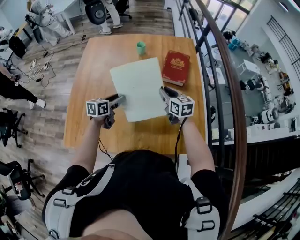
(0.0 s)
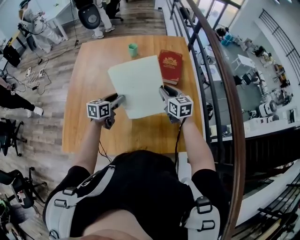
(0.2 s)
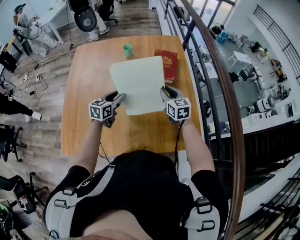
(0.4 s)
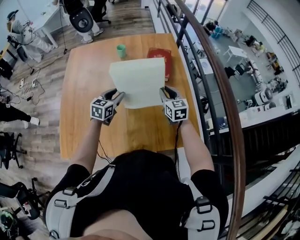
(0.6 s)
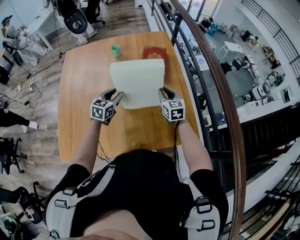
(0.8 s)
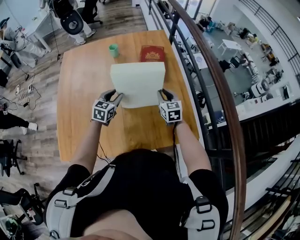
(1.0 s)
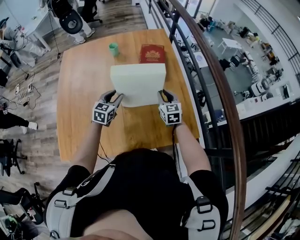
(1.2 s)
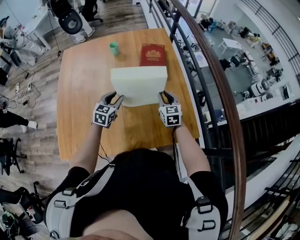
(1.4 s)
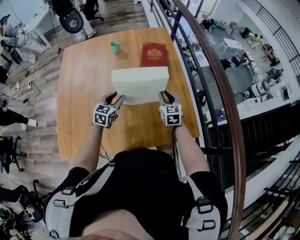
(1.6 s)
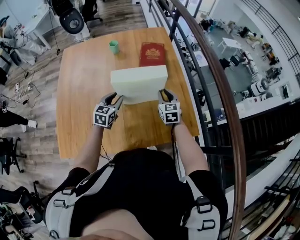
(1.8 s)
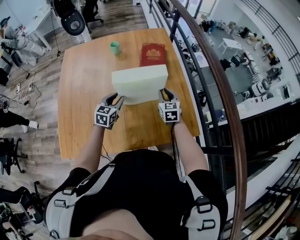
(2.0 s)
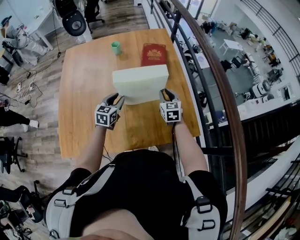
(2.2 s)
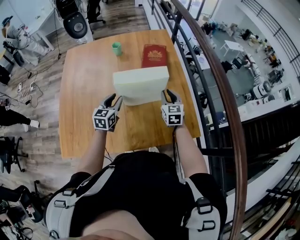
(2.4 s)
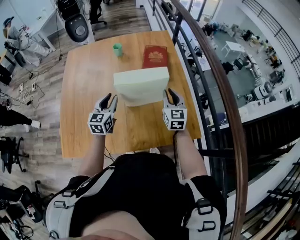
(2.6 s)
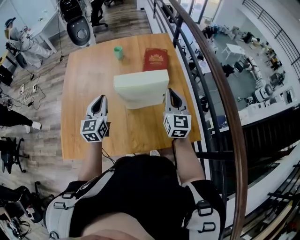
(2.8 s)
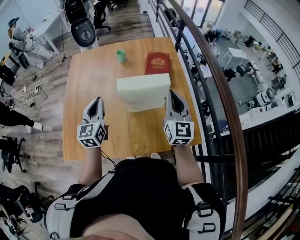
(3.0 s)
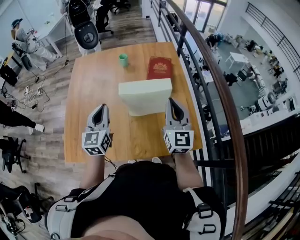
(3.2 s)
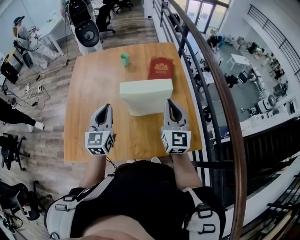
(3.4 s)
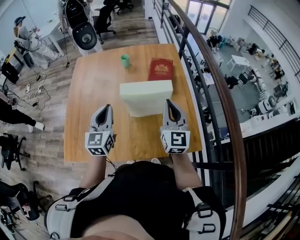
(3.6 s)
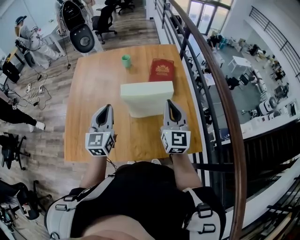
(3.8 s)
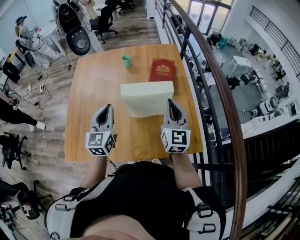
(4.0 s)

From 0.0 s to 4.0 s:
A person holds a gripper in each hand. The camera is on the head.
From 0.0 s to 1.4 s: Both grippers travel together to the right, some 10 cm. The left gripper swivels some 30 degrees, while the right gripper swivels approximately 30 degrees.
From 1.4 s to 2.6 s: The two grippers go approximately 10 cm upward.
From 2.6 s to 4.0 s: The left gripper travels upward and backward by about 15 cm, and closes its fingers. The right gripper shifts some 15 cm upward.

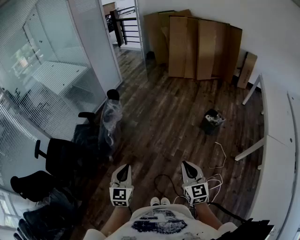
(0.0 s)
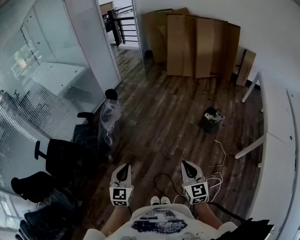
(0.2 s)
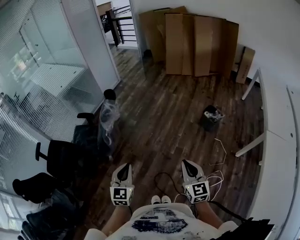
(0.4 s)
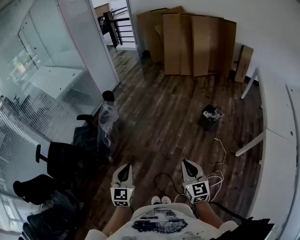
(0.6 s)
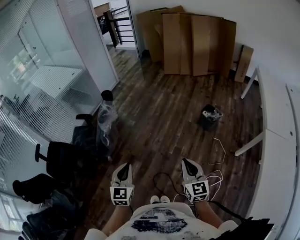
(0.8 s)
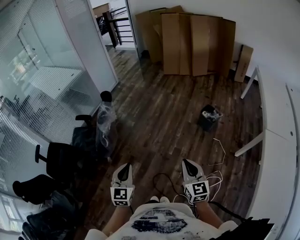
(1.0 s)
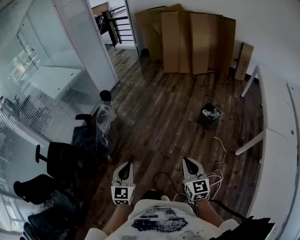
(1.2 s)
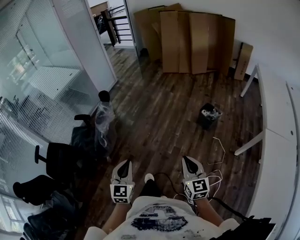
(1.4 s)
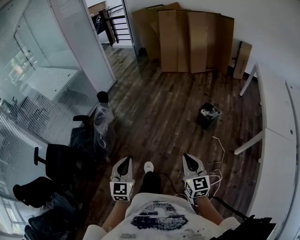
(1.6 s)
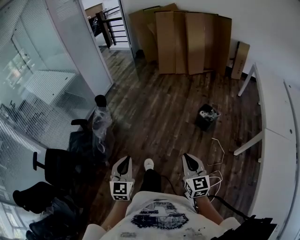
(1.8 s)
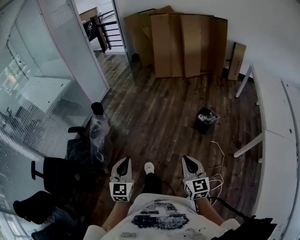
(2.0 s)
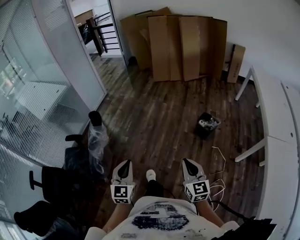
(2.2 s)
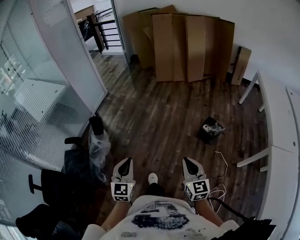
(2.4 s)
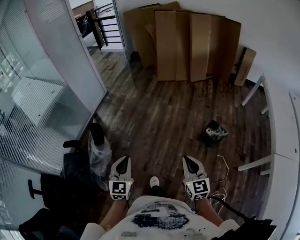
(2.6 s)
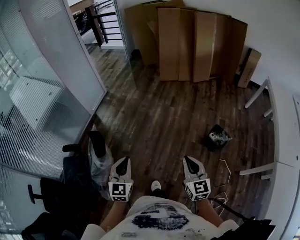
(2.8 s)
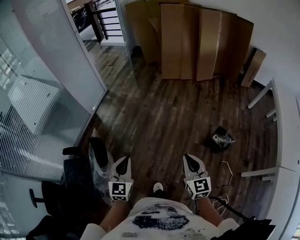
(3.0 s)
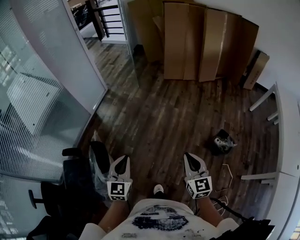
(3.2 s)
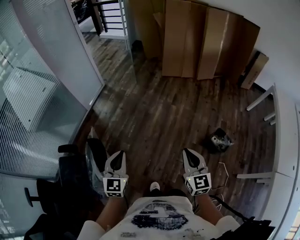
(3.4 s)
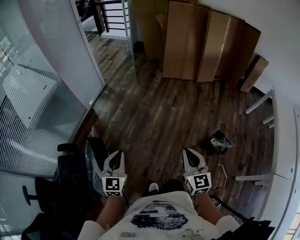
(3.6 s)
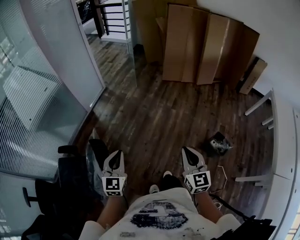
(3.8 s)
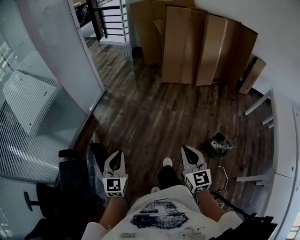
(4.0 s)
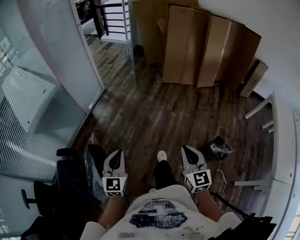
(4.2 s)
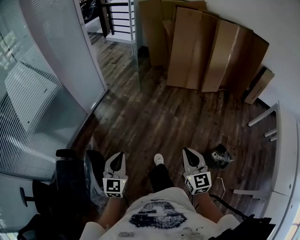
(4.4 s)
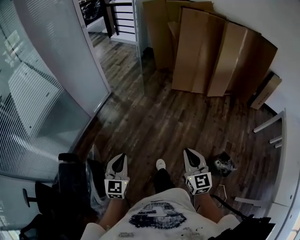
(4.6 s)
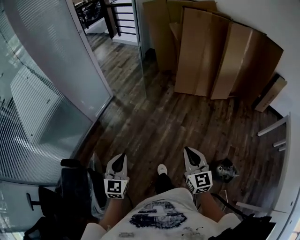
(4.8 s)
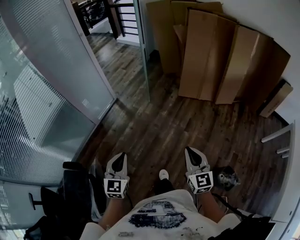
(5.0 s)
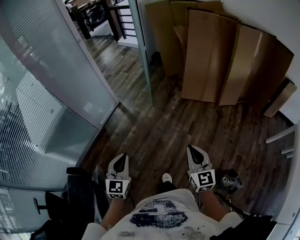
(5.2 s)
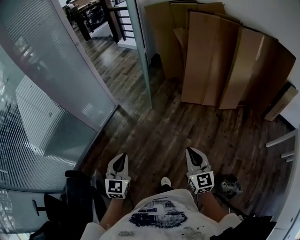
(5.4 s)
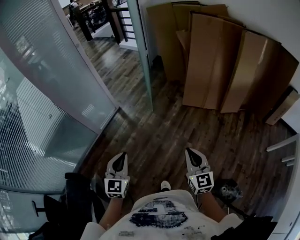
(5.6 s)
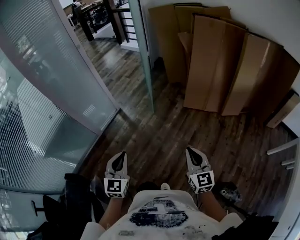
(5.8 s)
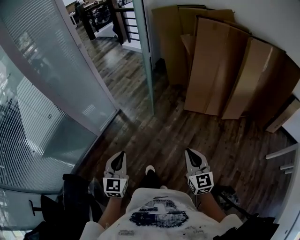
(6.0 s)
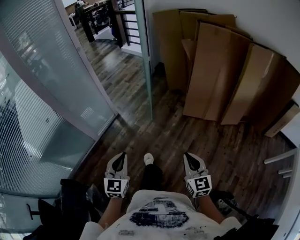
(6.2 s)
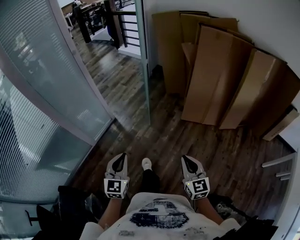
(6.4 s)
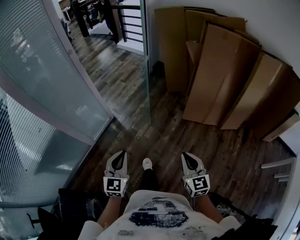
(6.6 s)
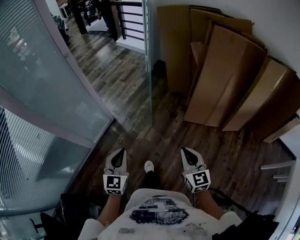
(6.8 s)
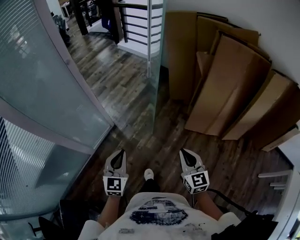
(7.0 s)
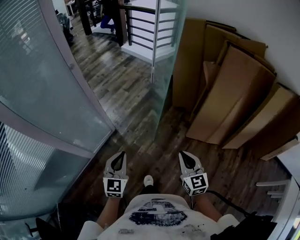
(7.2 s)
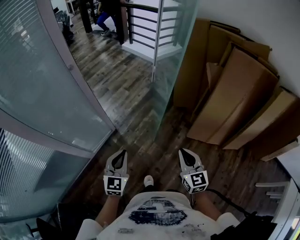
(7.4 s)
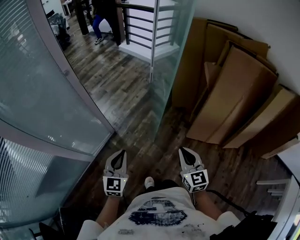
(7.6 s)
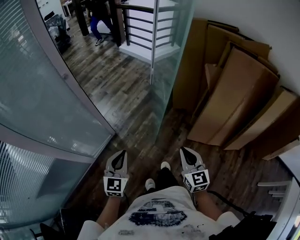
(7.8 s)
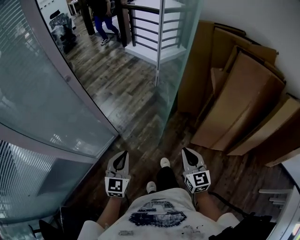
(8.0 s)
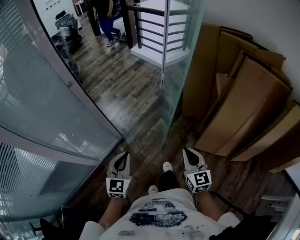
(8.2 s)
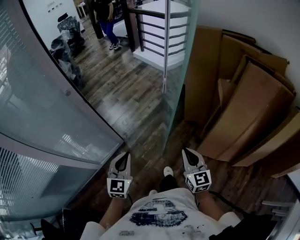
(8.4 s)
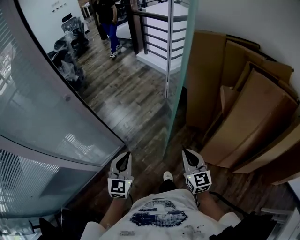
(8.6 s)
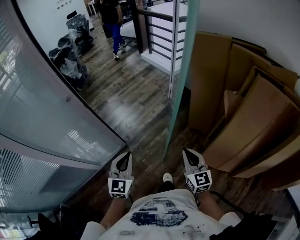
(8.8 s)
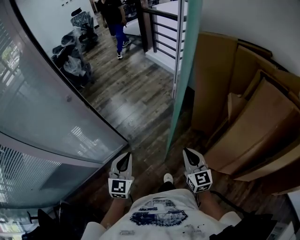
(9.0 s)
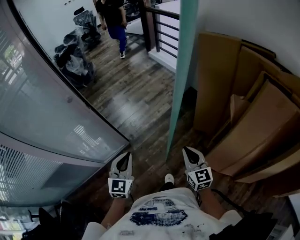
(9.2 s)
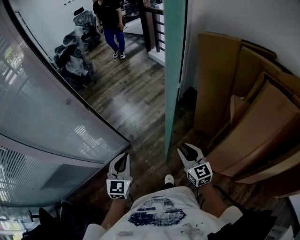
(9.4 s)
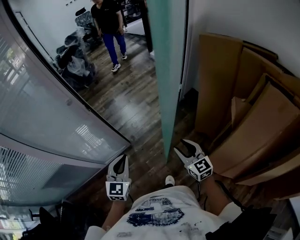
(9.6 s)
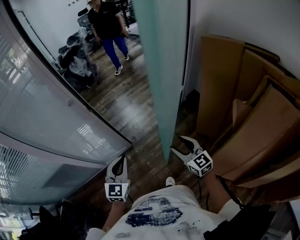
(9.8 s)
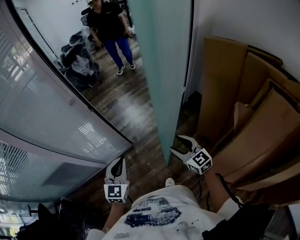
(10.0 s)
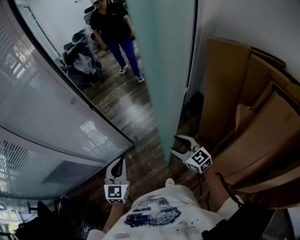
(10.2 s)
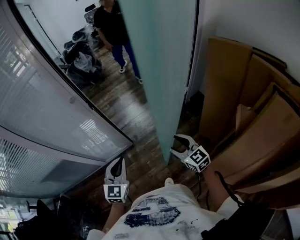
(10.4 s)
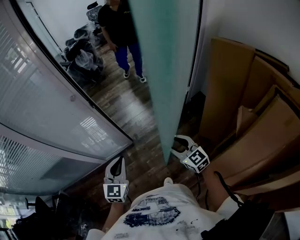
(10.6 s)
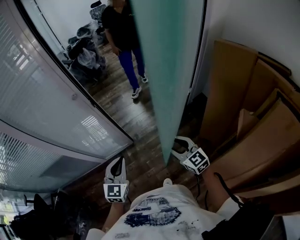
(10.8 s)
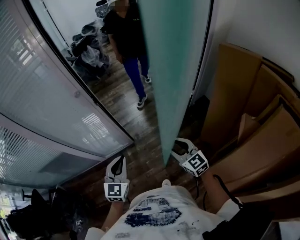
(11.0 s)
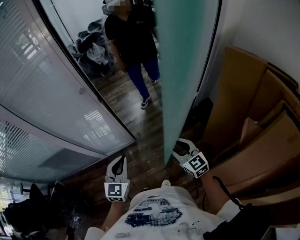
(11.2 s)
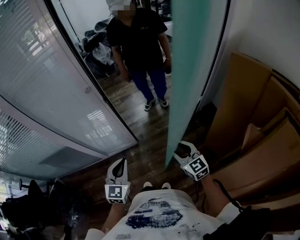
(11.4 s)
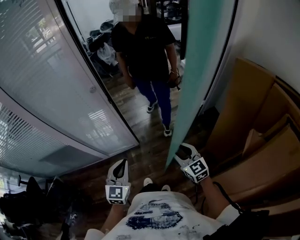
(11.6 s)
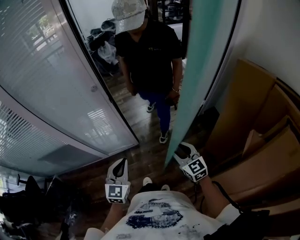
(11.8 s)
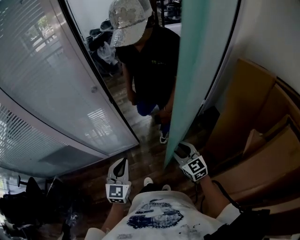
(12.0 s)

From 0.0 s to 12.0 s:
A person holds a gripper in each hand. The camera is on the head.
From 0.0 s to 1.6 s: The right gripper moves to the right, roughly 10 cm. Meanwhile the left gripper is displaced to the right and forward by about 10 cm.
From 1.6 s to 3.0 s: Both grippers are carried forward, some 50 cm.
From 3.0 s to 4.4 s: The grippers both shift forward by some 15 cm.
From 4.4 s to 6.0 s: Both grippers travel together forward, some 35 cm.
From 6.0 s to 7.6 s: Both grippers are carried forward, some 40 cm.
From 7.6 s to 9.0 s: The two grippers go some 20 cm forward.
From 9.0 s to 10.4 s: The right gripper goes approximately 10 cm forward, swivels approximately 40 degrees, and opens.
From 10.4 s to 12.0 s: The right gripper moves about 5 cm.

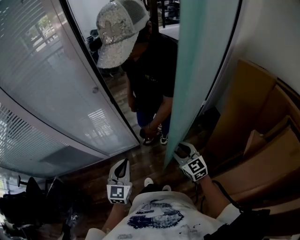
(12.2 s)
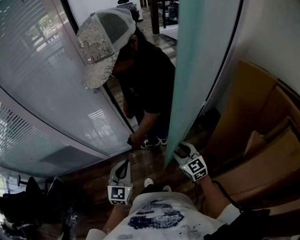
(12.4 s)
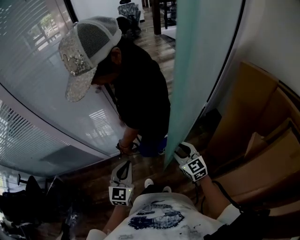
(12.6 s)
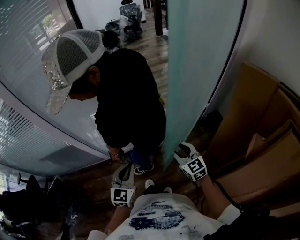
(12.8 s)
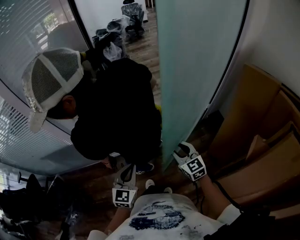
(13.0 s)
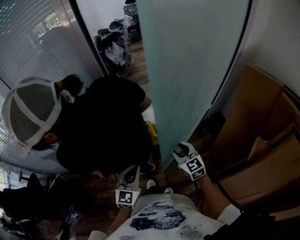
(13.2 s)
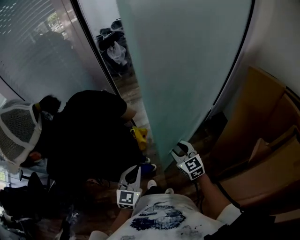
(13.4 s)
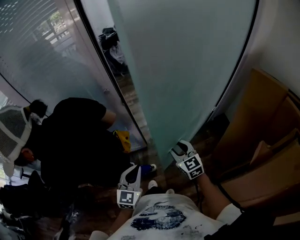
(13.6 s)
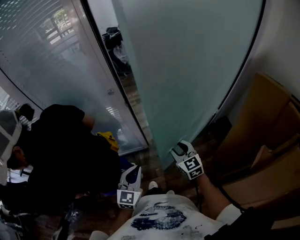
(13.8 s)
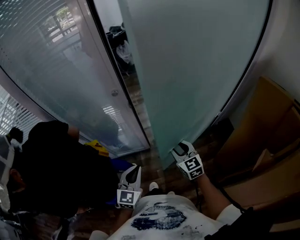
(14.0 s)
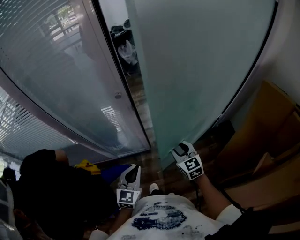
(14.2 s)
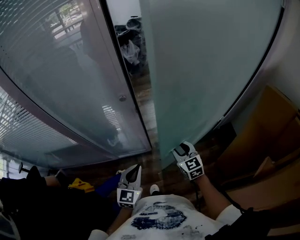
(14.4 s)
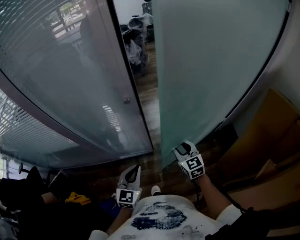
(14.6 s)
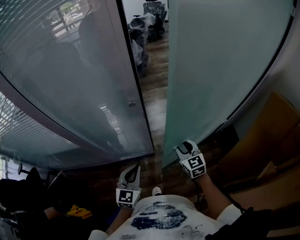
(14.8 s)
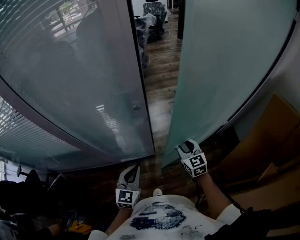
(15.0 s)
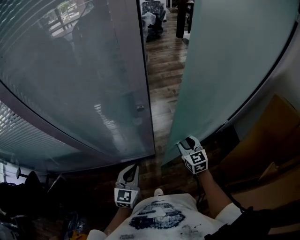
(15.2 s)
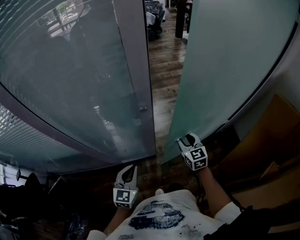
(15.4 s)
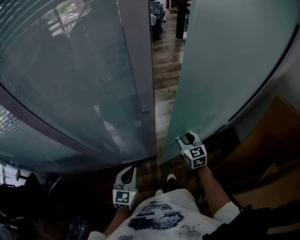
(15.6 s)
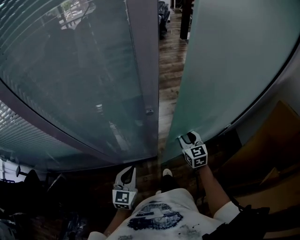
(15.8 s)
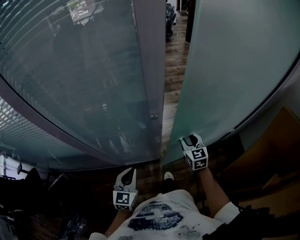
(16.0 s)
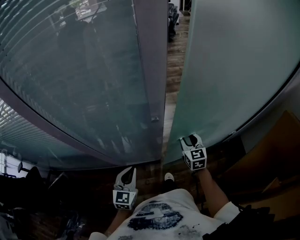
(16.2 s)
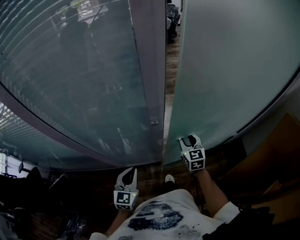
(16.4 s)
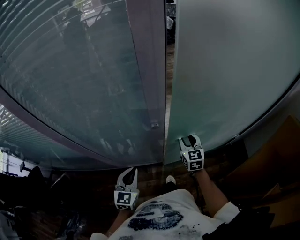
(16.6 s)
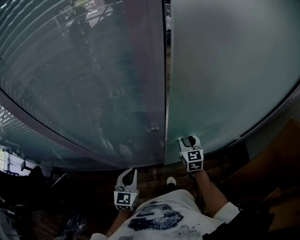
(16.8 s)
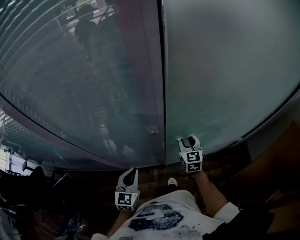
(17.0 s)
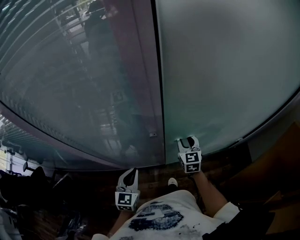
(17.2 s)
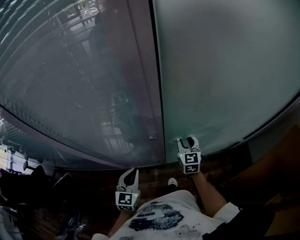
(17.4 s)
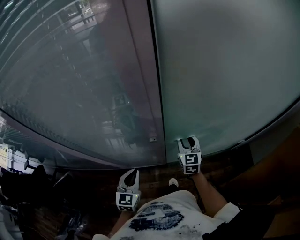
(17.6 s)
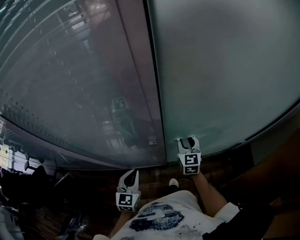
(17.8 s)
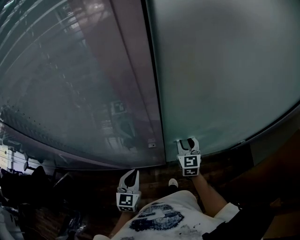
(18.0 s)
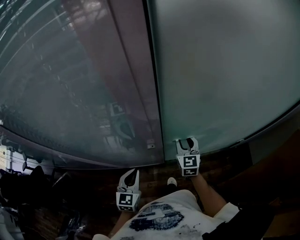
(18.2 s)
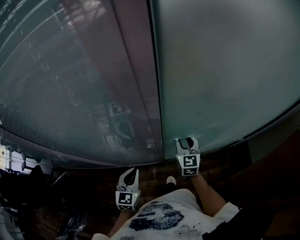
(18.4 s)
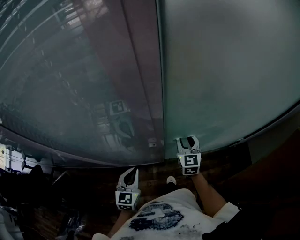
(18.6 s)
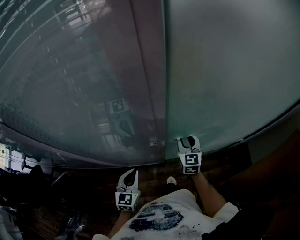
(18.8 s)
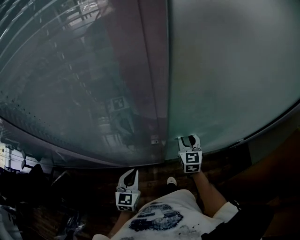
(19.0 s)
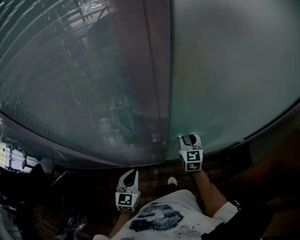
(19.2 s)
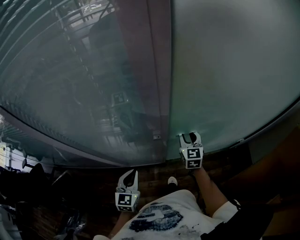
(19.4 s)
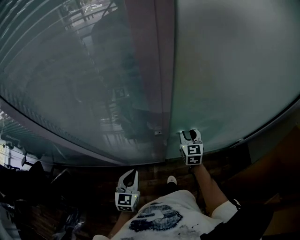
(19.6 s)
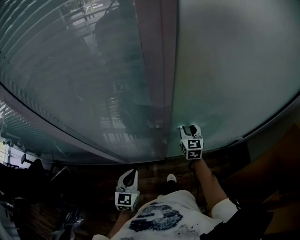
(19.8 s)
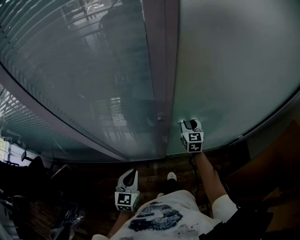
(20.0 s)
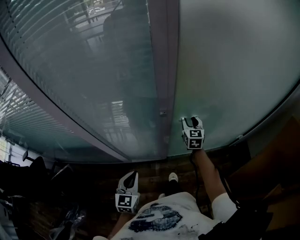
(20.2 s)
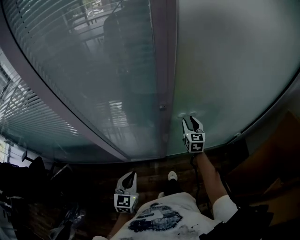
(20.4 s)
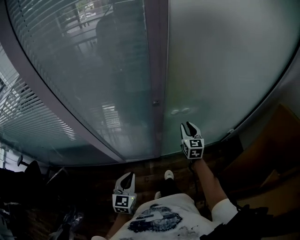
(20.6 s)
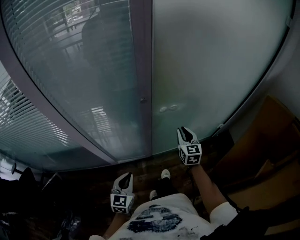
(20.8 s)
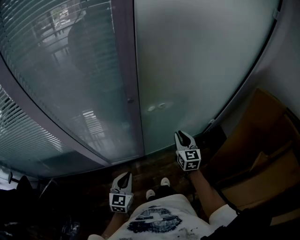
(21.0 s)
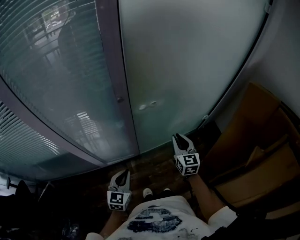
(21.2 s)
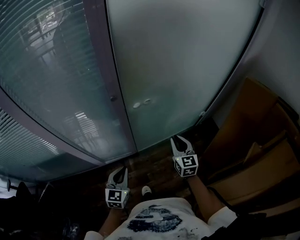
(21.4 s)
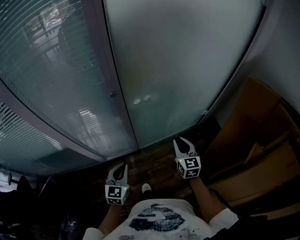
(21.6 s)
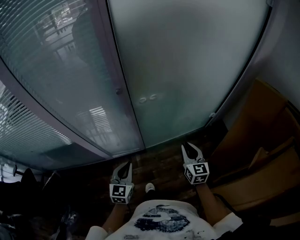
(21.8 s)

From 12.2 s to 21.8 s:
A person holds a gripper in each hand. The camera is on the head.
From 12.2 s to 13.8 s: The right gripper goes approximately 5 cm forward.
From 13.8 s to 15.4 s: The right gripper goes some 20 cm forward; the left gripper shifts about 15 cm forward and to the left.
From 15.4 s to 17.0 s: The right gripper goes roughly 10 cm forward. The left gripper moves forward, roughly 5 cm.
From 17.0 s to 18.6 s: The grippers move only a little.
From 18.6 s to 20.2 s: The left gripper heads backward, covering some 15 cm.
From 20.2 s to 21.8 s: The left gripper shifts some 10 cm to the right. Meanwhile the right gripper goes some 35 cm backward and to the right, and closes.
